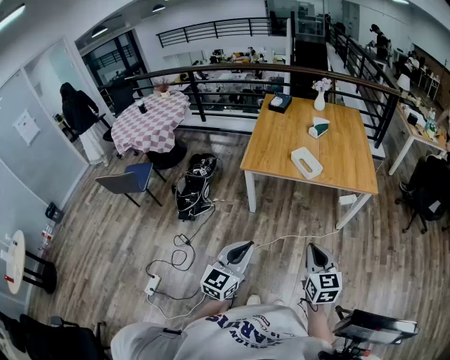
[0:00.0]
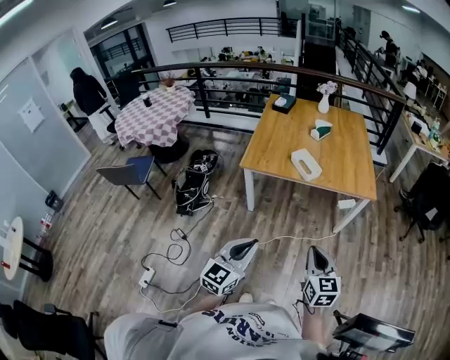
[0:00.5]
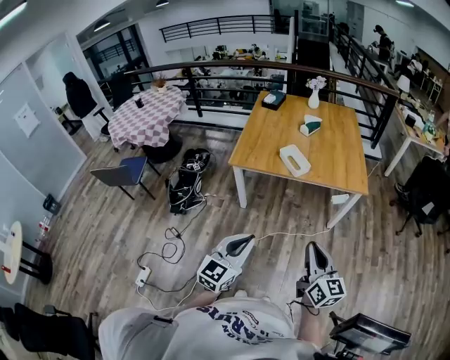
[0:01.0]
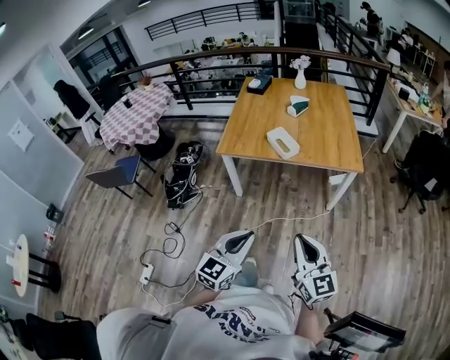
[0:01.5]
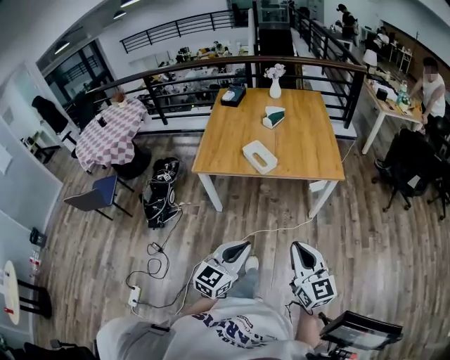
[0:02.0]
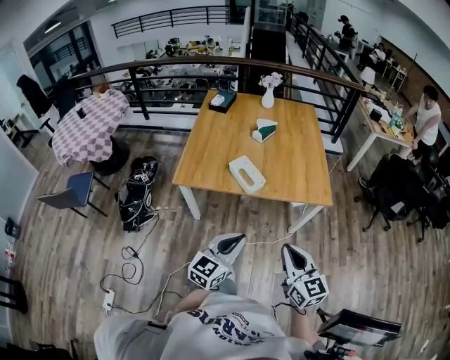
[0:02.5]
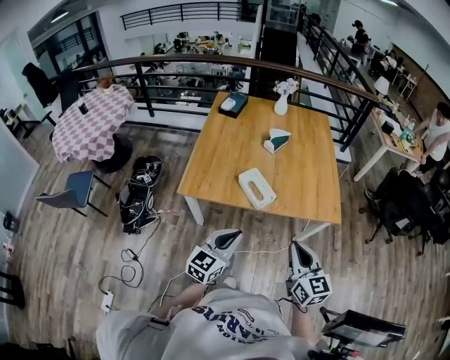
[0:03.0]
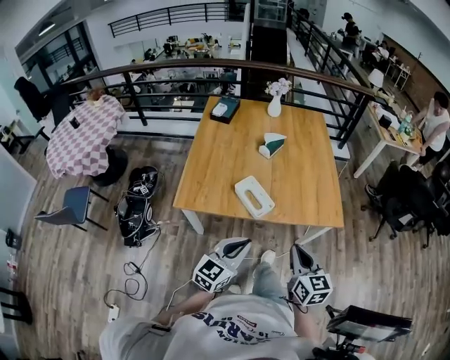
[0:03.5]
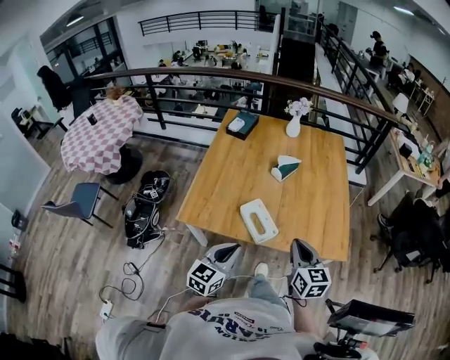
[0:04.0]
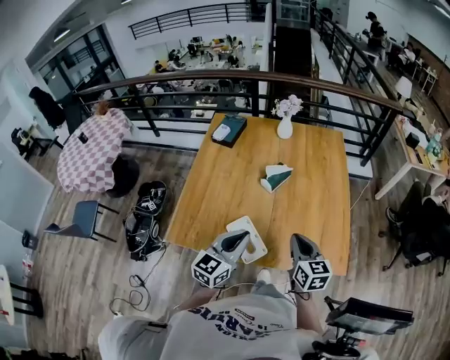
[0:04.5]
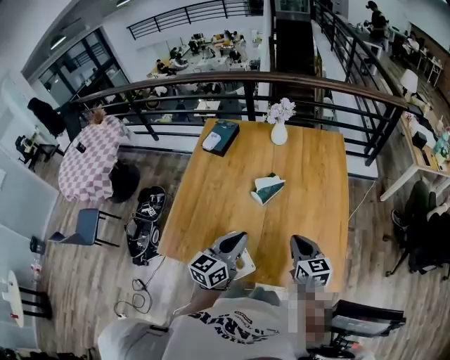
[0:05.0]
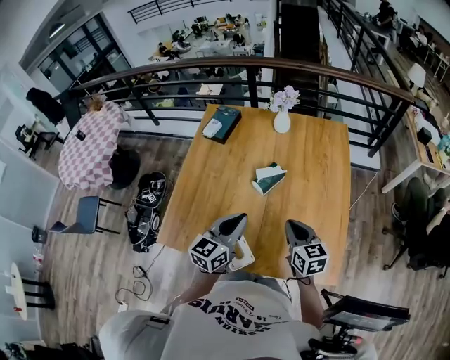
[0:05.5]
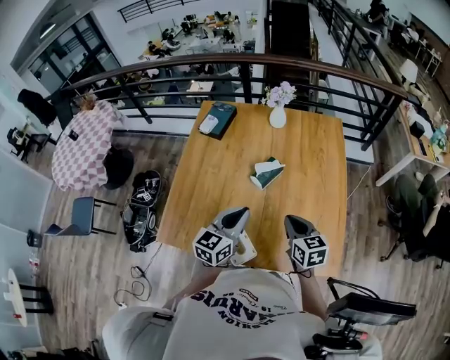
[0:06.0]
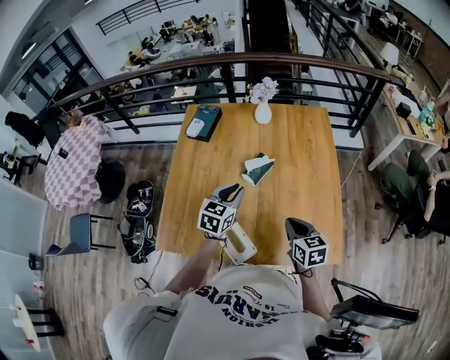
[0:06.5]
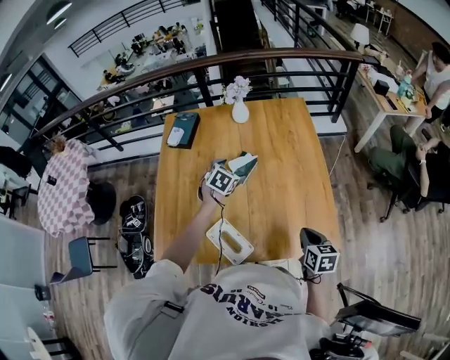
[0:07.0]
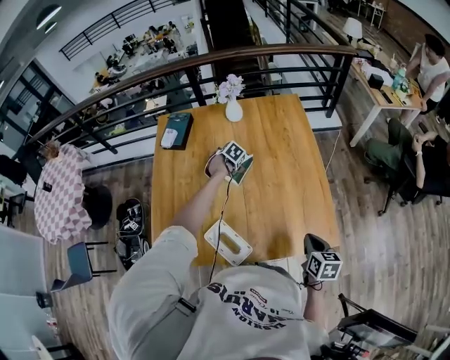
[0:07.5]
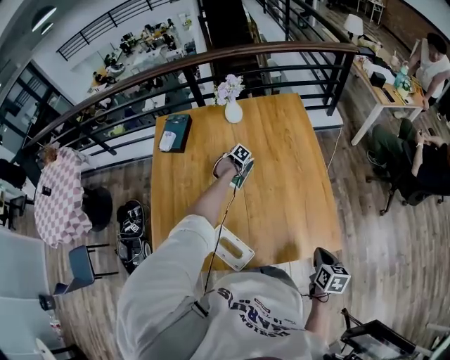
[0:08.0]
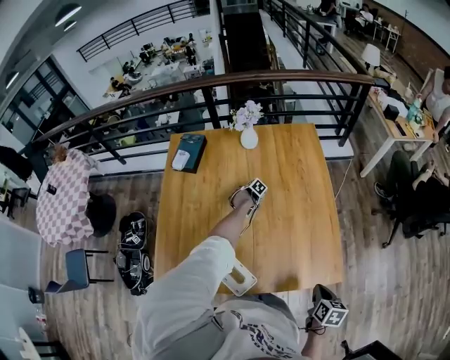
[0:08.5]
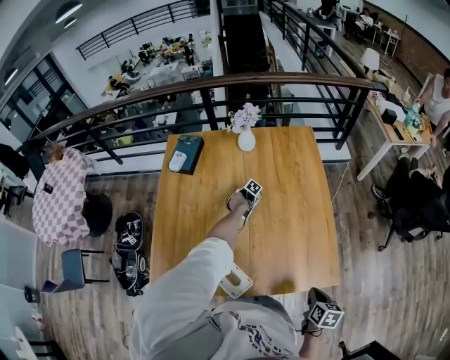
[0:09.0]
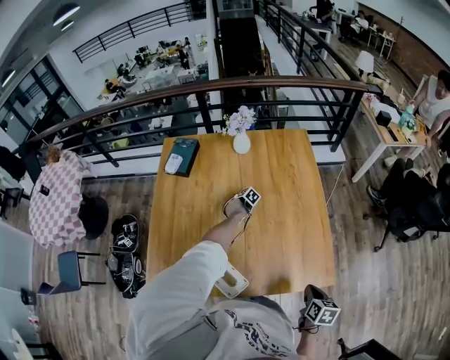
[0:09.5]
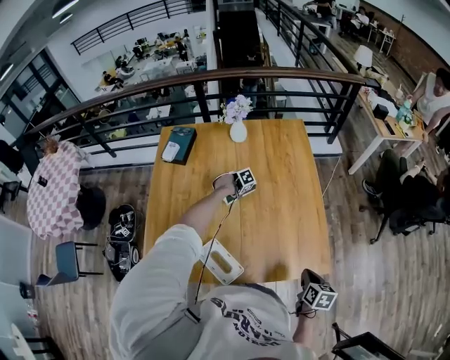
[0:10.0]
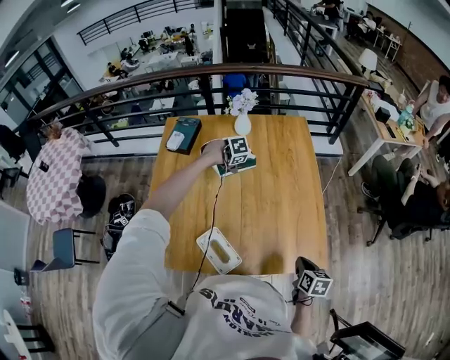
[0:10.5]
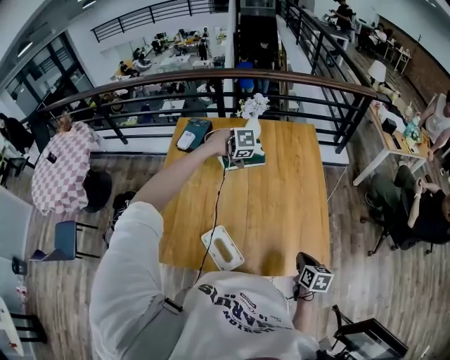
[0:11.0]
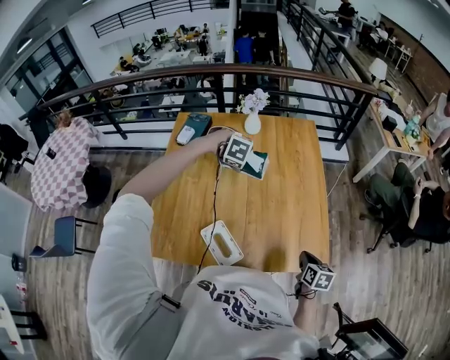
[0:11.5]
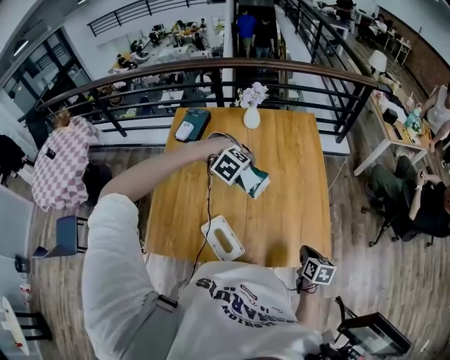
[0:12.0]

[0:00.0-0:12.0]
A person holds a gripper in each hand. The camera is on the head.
0:00.0 to 0:02.0: The right gripper moves to the right, approximately 15 cm; the left gripper moves to the right and forward, about 20 cm.
0:02.0 to 0:04.0: The pair of grippers is taken forward, about 40 cm.
0:04.0 to 0:06.0: The grippers both shift forward by roughly 30 cm.
0:06.0 to 0:08.0: The left gripper heads downward, covering roughly 35 cm, tilts its fingers roughly 70 degrees downward, and opens up. The right gripper ends up approximately 25 cm from where it was, and swivels roughly 40 degrees.
0:08.0 to 0:10.0: The left gripper rotates about 20 degrees.
0:10.0 to 0:12.0: The left gripper goes approximately 25 cm upward, and rotates around the line of its fingers by some 70 degrees, clockwise from behind.

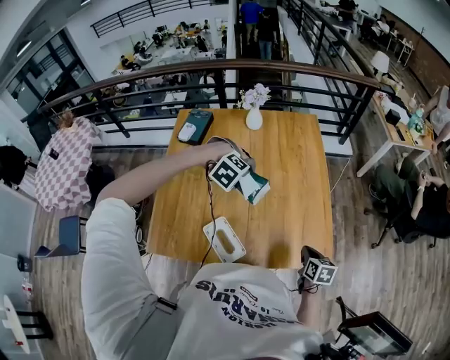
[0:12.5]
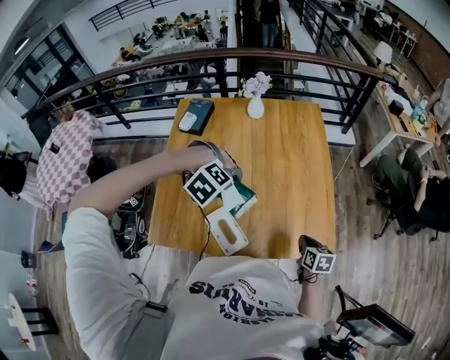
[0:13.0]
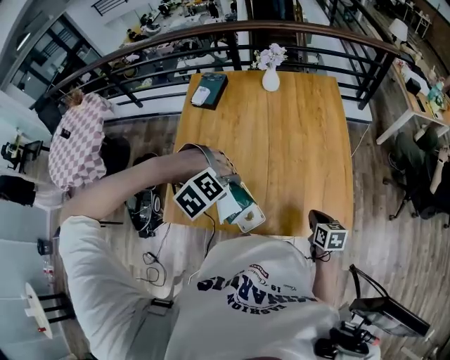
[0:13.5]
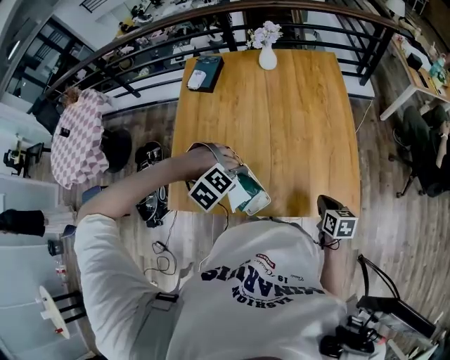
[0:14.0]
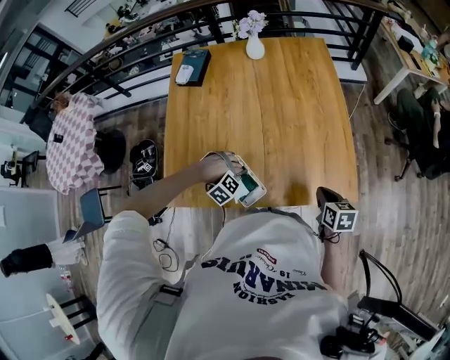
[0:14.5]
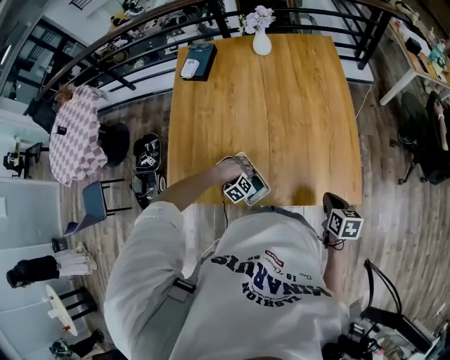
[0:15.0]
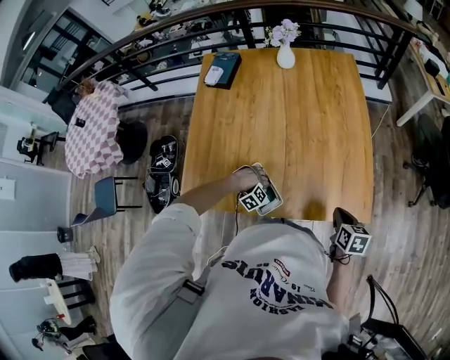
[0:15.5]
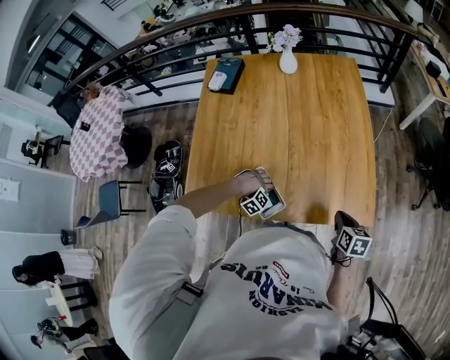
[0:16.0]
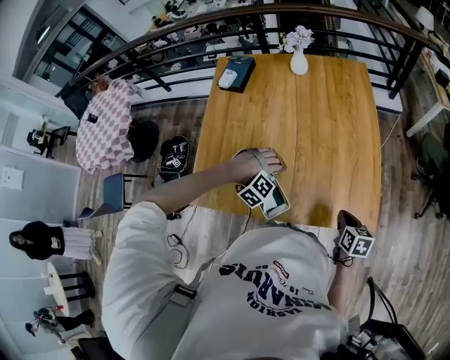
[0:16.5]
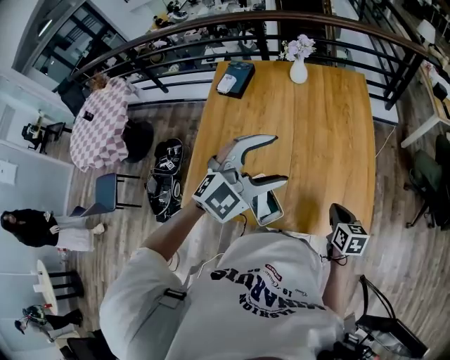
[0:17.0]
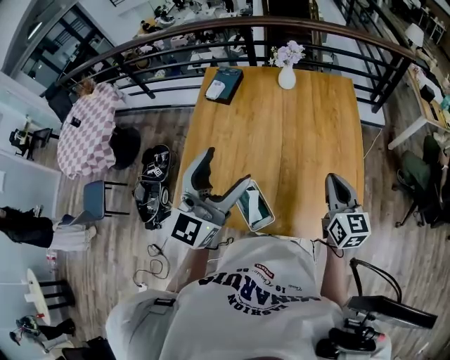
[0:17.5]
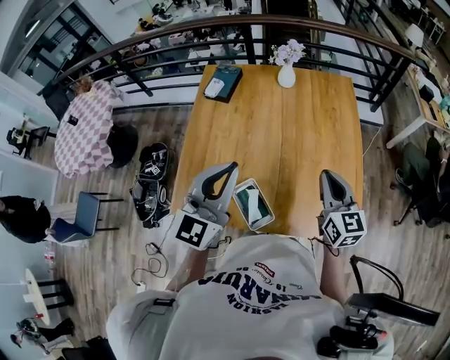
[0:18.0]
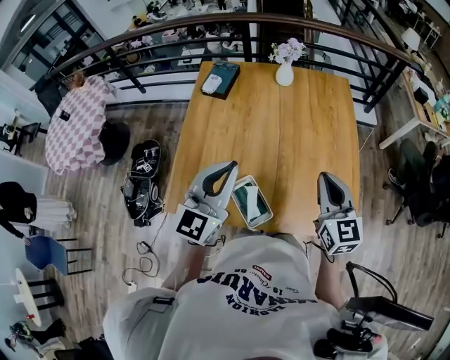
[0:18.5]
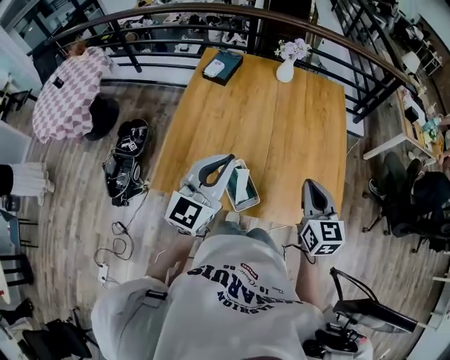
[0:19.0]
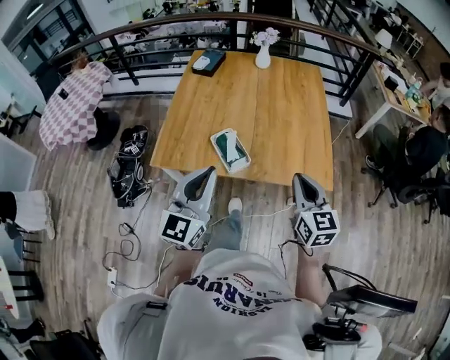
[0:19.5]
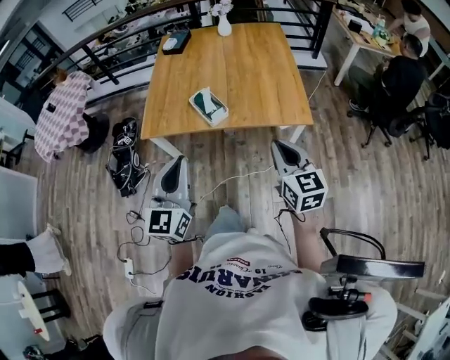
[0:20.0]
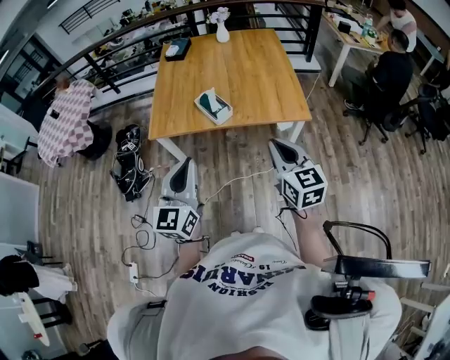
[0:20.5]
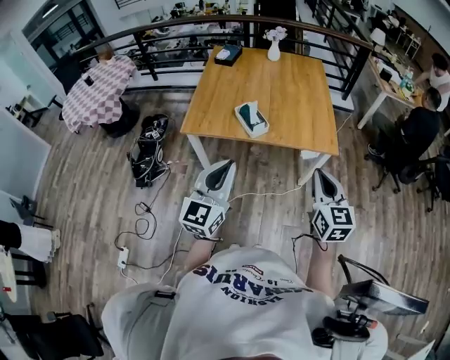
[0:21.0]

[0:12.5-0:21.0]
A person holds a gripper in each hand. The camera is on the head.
0:12.5 to 0:14.5: The left gripper travels downward by some 20 cm.
0:14.5 to 0:16.5: The left gripper heads upward, covering roughly 5 cm.
0:16.5 to 0:19.0: The grippers both shift upward by some 25 cm. The left gripper points its fingers approximately 80 degrees further upward, and closes its fingers. The right gripper changes its angle by approximately 40 degrees.
0:19.0 to 0:21.0: Both grippers are carried backward, some 50 cm.

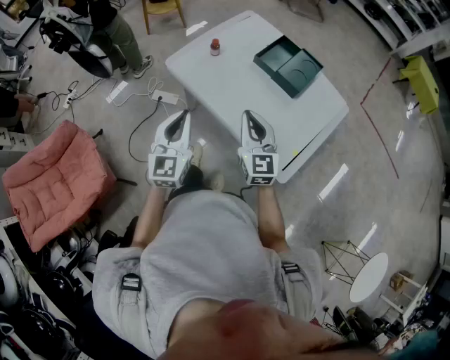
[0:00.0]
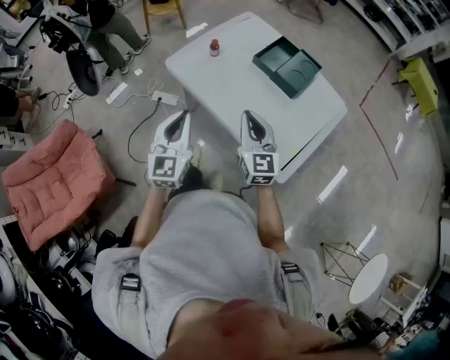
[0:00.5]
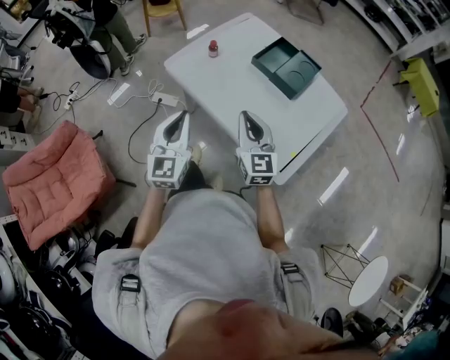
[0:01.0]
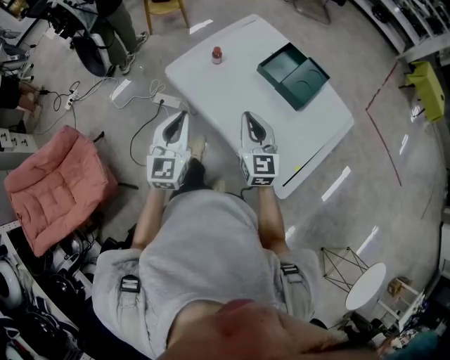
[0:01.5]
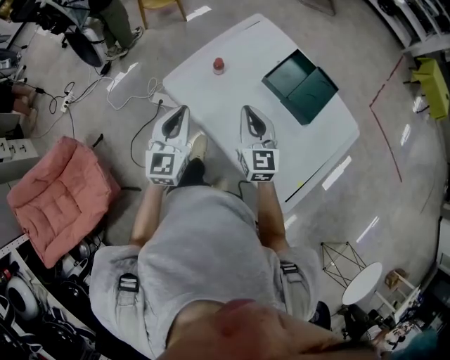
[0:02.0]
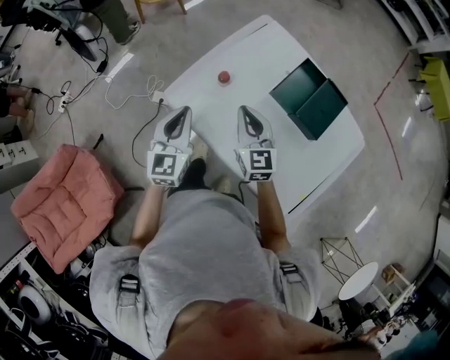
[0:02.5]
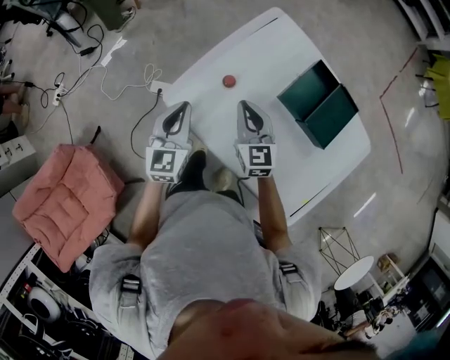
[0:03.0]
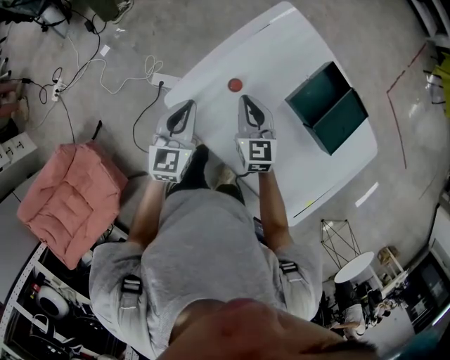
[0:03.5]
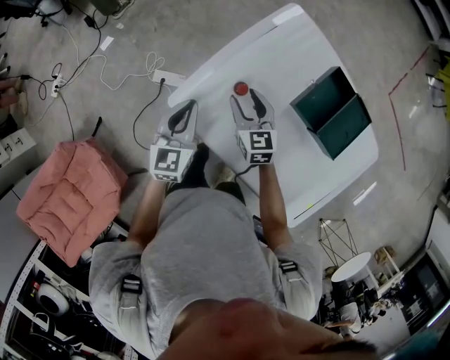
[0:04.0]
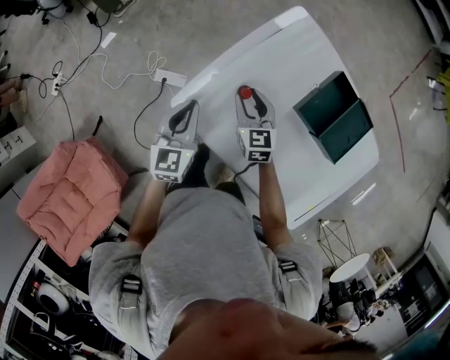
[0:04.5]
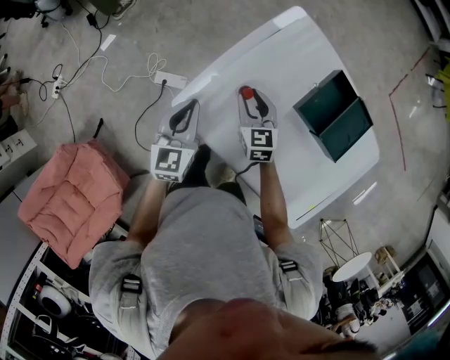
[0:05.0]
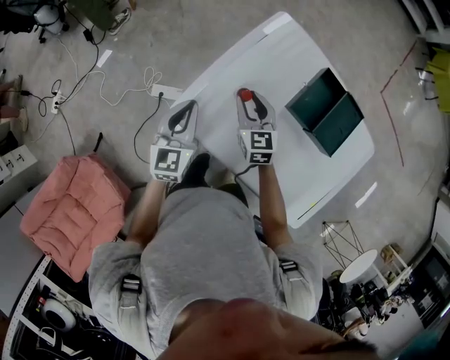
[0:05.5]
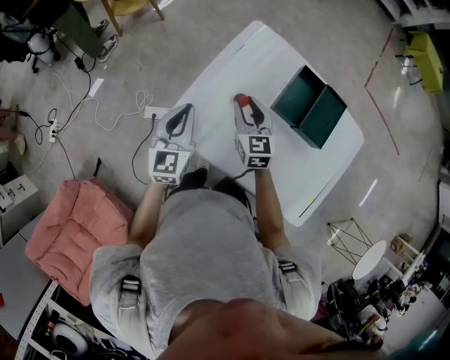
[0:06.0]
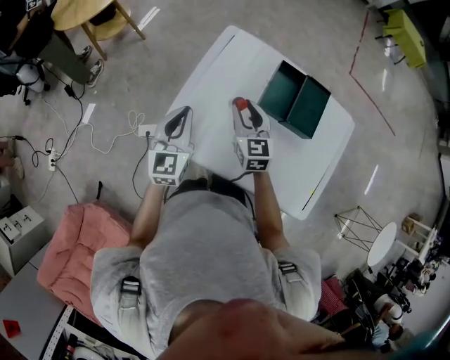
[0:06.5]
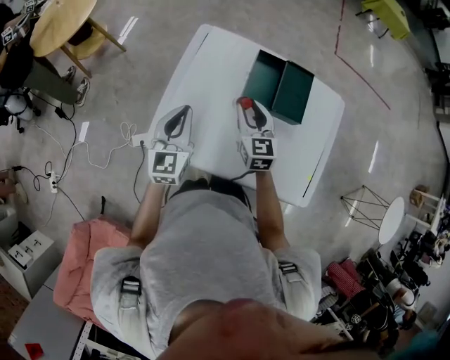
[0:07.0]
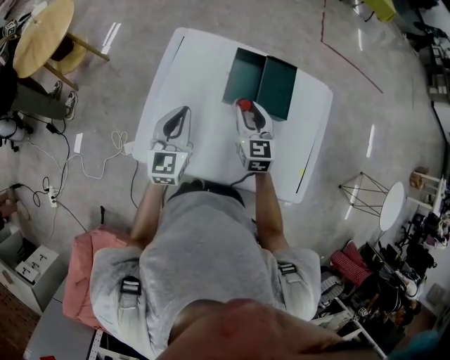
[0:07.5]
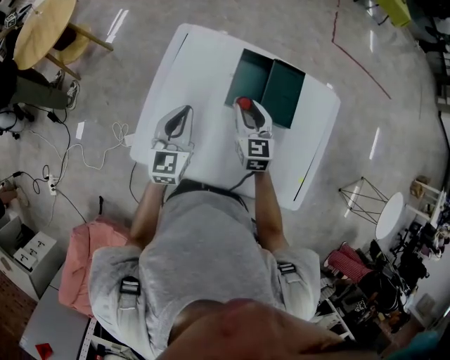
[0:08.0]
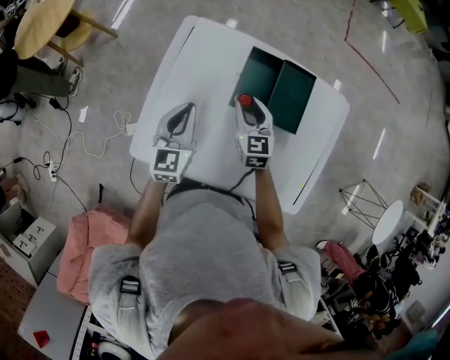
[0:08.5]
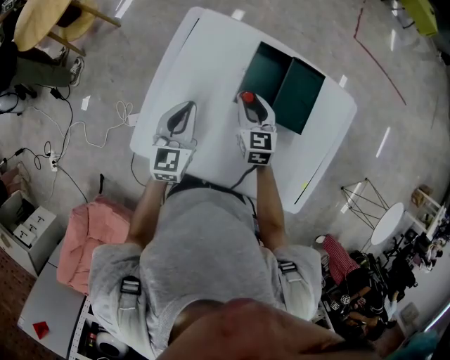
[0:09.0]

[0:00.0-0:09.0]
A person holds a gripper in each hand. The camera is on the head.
0:00.0 to 0:02.0: The two grippers go roughly 20 cm forward.
0:02.0 to 0:04.5: Both grippers travel together forward and downward, roughly 25 cm. The right gripper rotates roughly 20 degrees, and opens.
0:04.5 to 0:07.0: The left gripper shifts by approximately 15 cm, and changes its angle by about 30 degrees, while the right gripper shifts by approximately 20 cm, and changes its angle by approximately 30 degrees.
0:07.0 to 0:09.0: The left gripper moves forward, downward and to the right, roughly 10 cm, while the right gripper travels downward and forward by some 10 cm.
